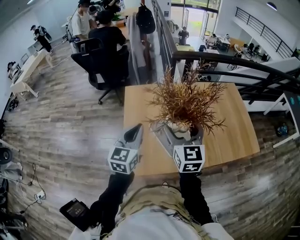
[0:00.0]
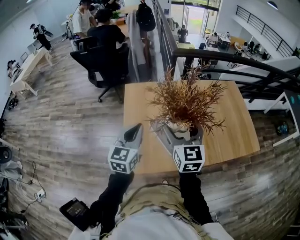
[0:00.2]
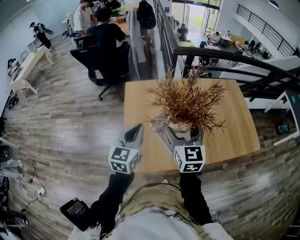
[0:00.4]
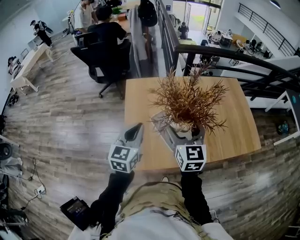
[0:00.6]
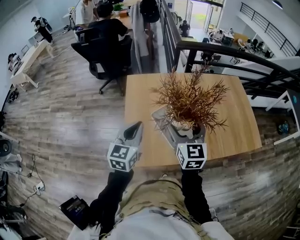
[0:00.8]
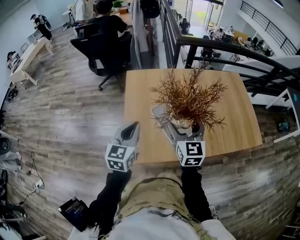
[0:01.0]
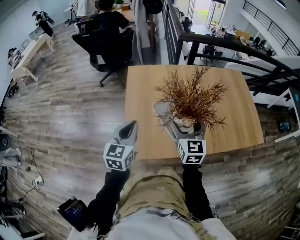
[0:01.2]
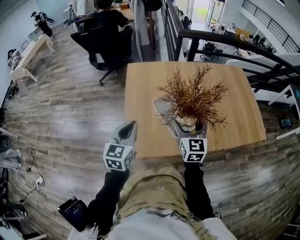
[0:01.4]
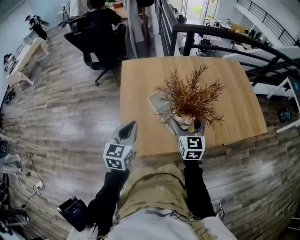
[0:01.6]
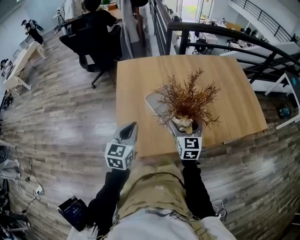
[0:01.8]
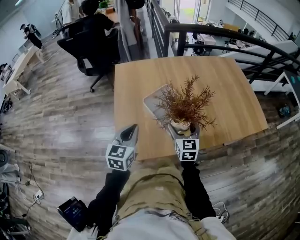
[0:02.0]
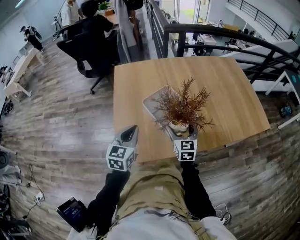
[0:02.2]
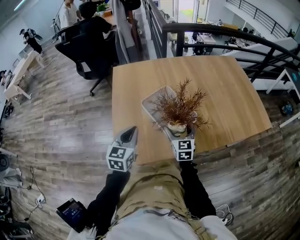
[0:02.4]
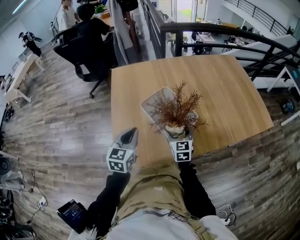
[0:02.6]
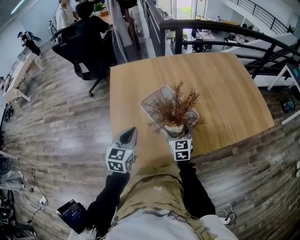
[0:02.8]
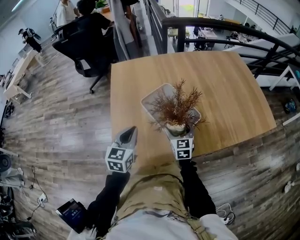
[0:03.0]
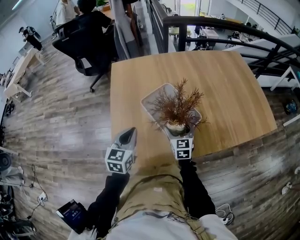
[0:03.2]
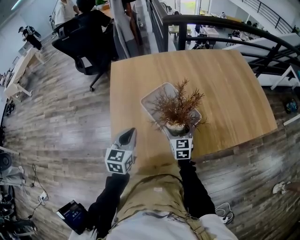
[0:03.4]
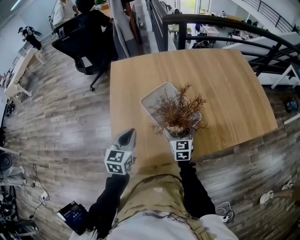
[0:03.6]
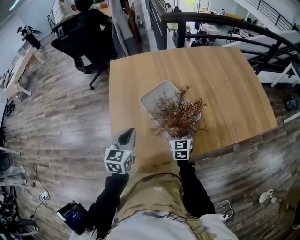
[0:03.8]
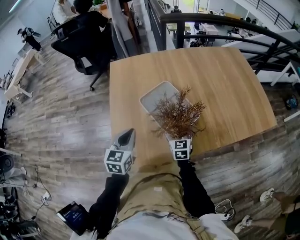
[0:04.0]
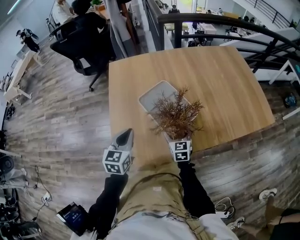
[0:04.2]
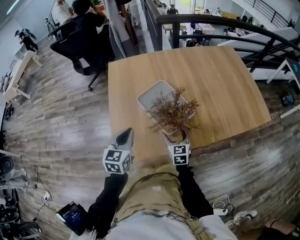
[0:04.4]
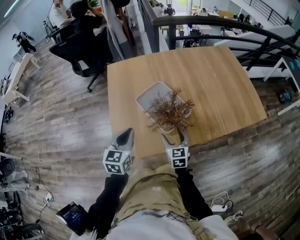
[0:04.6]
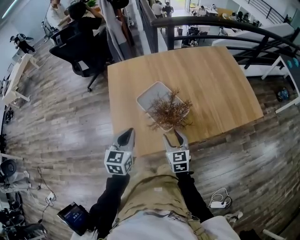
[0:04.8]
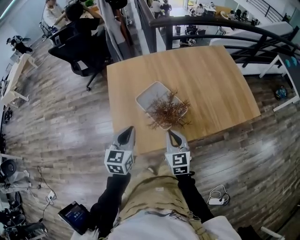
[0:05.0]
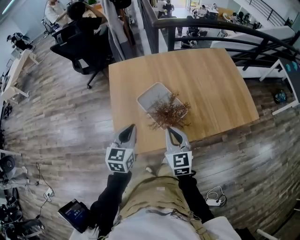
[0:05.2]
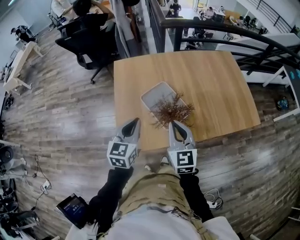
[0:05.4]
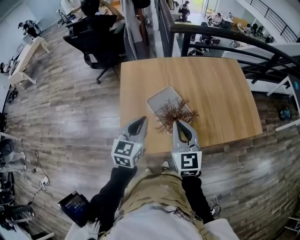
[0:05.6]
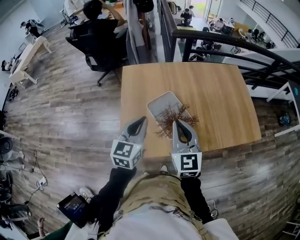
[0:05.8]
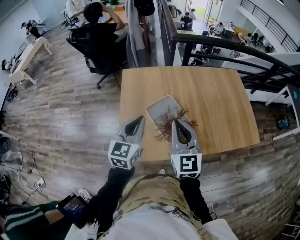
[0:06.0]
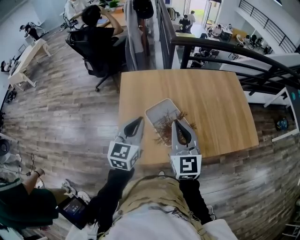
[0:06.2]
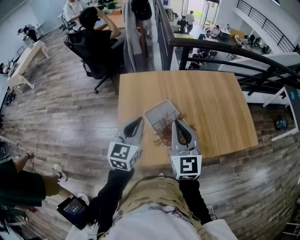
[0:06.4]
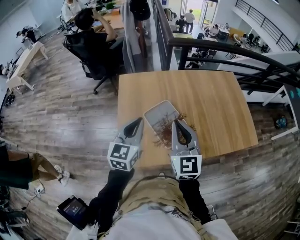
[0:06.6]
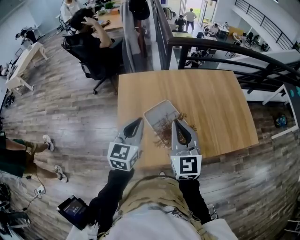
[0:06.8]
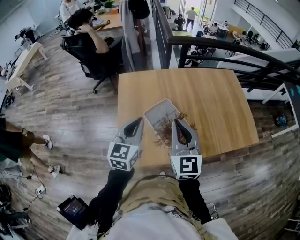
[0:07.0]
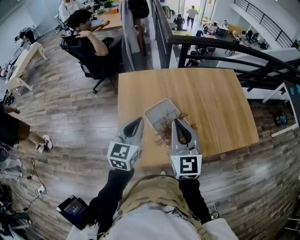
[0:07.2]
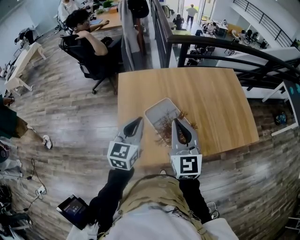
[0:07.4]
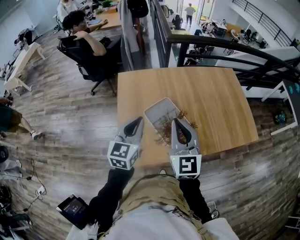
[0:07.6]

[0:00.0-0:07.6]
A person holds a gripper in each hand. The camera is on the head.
0:00.0 to 0:01.6: The two grippers go some 20 cm downward.
0:01.6 to 0:03.0: The right gripper travels downward by roughly 20 cm; the left gripper moves downward and forward, approximately 15 cm.
0:03.0 to 0:04.6: The right gripper shifts roughly 10 cm backward and upward, while the left gripper goes about 5 cm upward.
0:04.6 to 0:06.0: The left gripper moves upward, approximately 20 cm. The right gripper heads upward, covering about 35 cm, swivels roughly 30 degrees, and closes its fingers.
0:06.0 to 0:07.6: The grippers make only small movements.

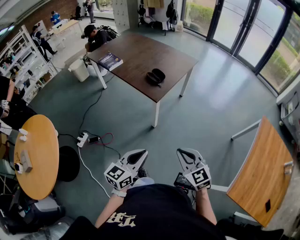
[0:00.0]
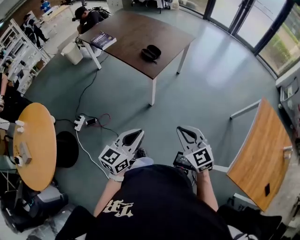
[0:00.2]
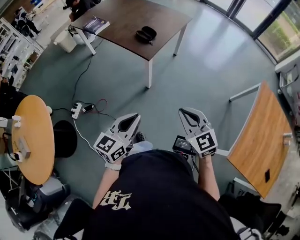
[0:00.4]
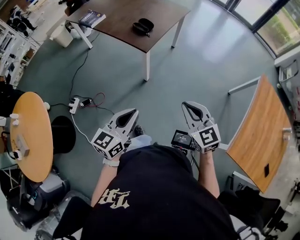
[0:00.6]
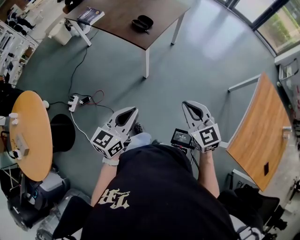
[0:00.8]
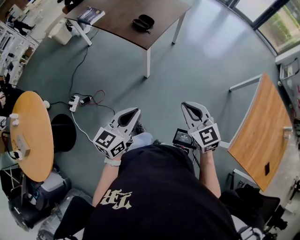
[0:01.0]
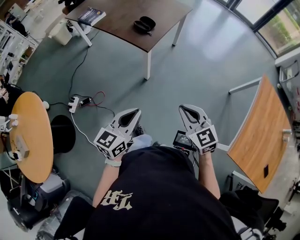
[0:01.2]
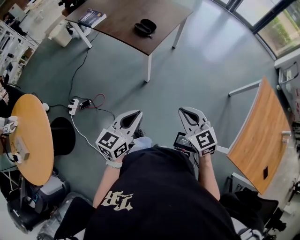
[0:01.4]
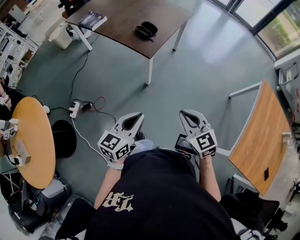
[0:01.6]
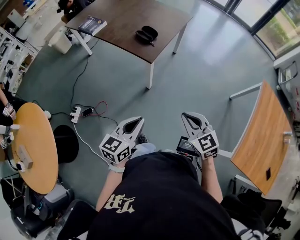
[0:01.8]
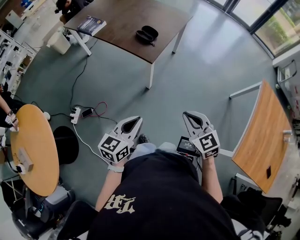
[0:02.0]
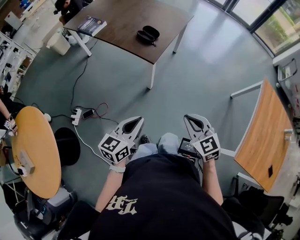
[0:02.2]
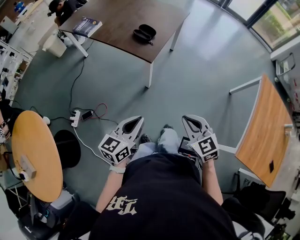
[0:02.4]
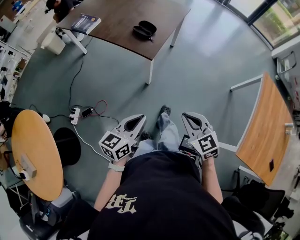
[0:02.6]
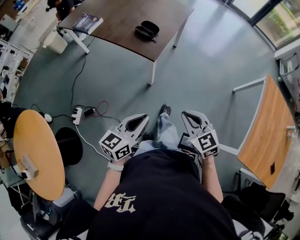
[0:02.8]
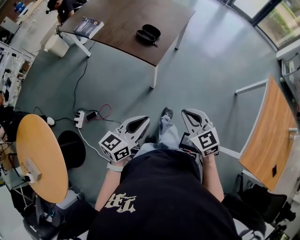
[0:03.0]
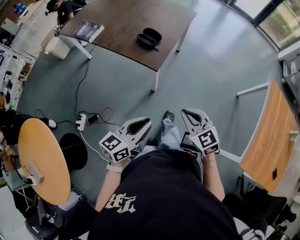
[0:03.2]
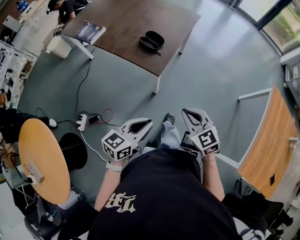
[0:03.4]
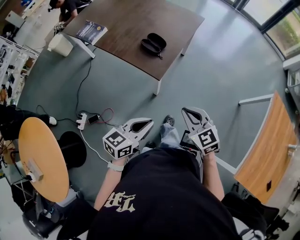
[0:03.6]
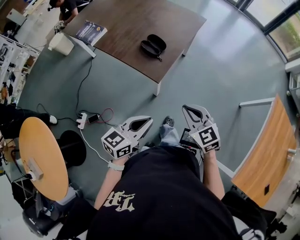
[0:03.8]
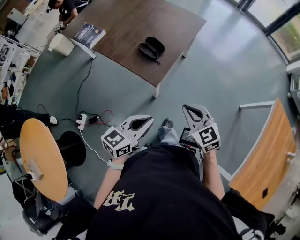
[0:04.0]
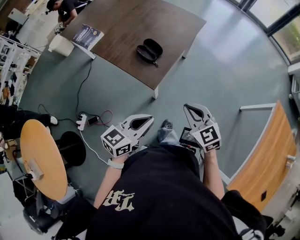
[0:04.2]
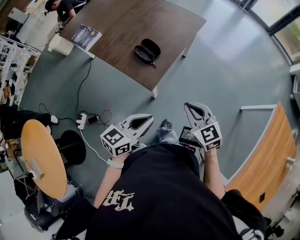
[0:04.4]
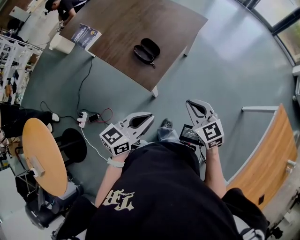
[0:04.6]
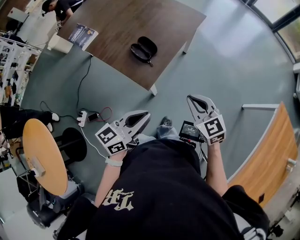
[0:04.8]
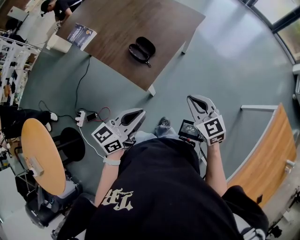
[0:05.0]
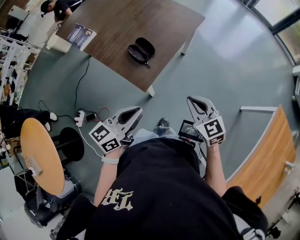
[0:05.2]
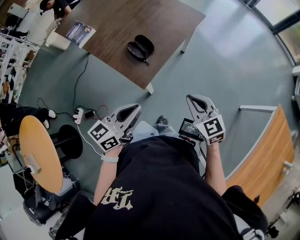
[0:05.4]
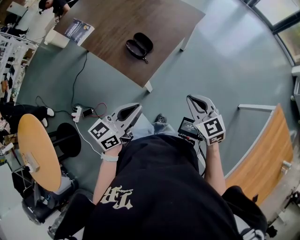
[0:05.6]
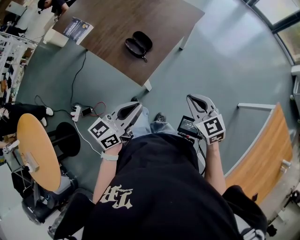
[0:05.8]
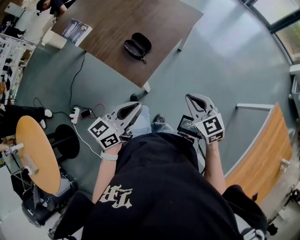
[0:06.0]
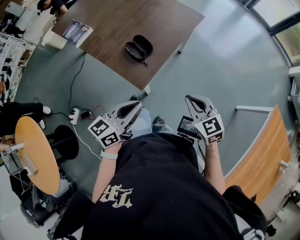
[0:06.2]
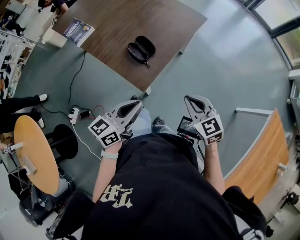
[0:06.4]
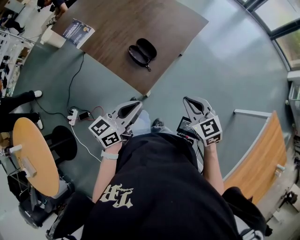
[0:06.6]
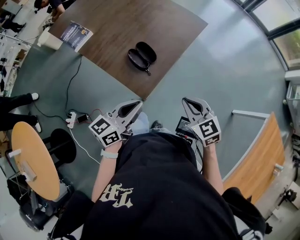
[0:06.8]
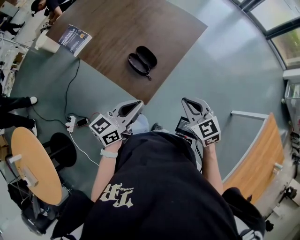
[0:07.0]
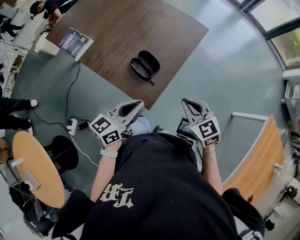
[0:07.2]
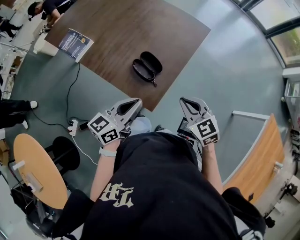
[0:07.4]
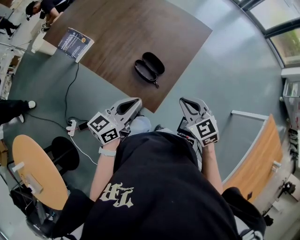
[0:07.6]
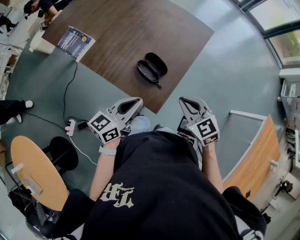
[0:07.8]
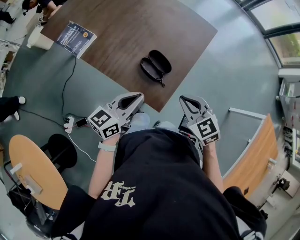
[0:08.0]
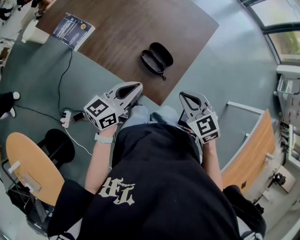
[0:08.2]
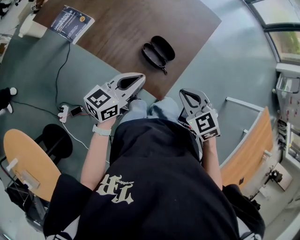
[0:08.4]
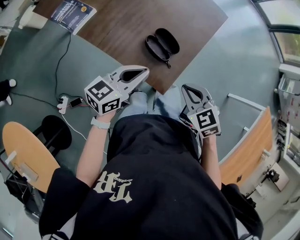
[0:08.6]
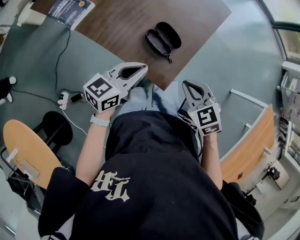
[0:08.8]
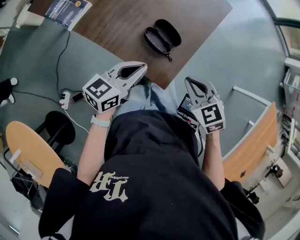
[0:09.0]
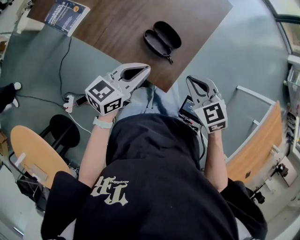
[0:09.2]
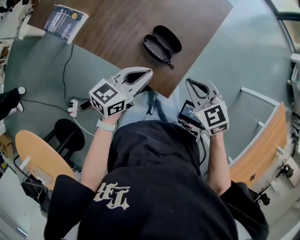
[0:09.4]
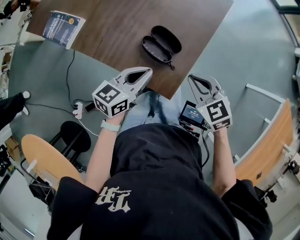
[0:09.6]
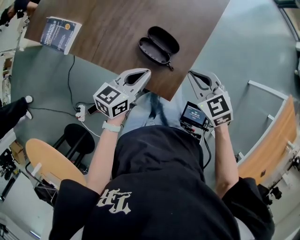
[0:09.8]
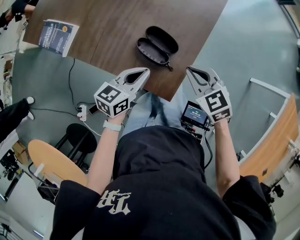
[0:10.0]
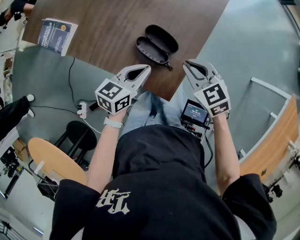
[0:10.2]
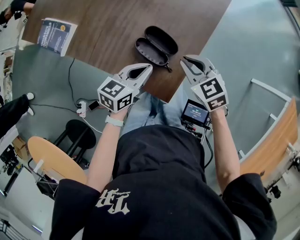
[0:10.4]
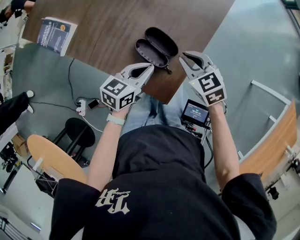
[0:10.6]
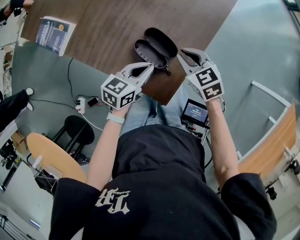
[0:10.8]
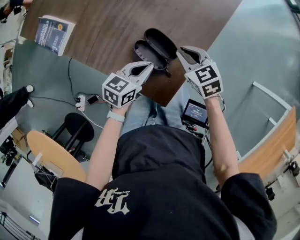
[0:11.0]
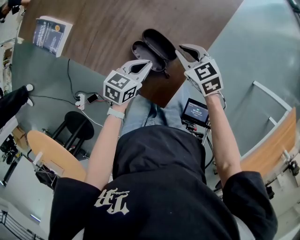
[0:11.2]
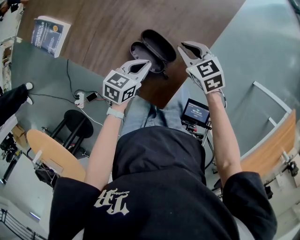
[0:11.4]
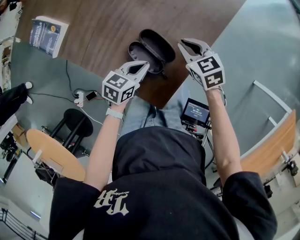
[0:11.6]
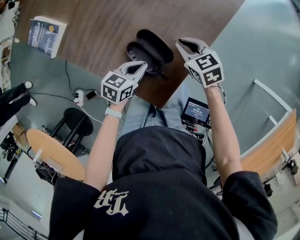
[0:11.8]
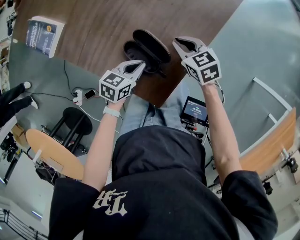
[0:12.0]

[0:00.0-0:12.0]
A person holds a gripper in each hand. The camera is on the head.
0:00.0 to 0:01.6: The two grippers go roughly 10 cm forward.
0:01.6 to 0:03.0: The right gripper travels forward and to the left by roughly 10 cm, while the left gripper is displaced forward by roughly 10 cm.
0:03.0 to 0:04.4: The two grippers go approximately 25 cm forward.
0:04.4 to 0:06.0: The right gripper heads to the right and forward, covering about 5 cm; the left gripper goes about 5 cm forward.
0:06.0 to 0:07.6: The right gripper shifts about 20 cm to the left and forward, while the left gripper moves forward and to the left, roughly 20 cm.
0:07.6 to 0:09.0: The left gripper shifts roughly 10 cm downward and to the left. The right gripper heads to the left and downward, covering approximately 10 cm.
0:09.0 to 0:10.4: The left gripper shifts approximately 15 cm downward, forward and to the right; the right gripper moves forward and downward, some 15 cm.
0:10.4 to 0:12.0: The right gripper moves downward and forward, approximately 15 cm; the left gripper goes about 10 cm downward.

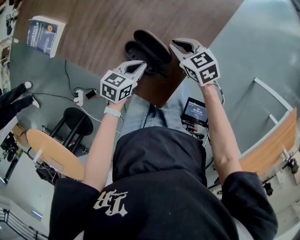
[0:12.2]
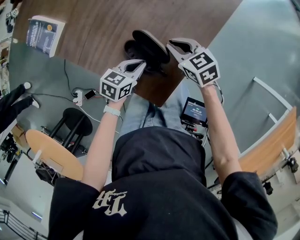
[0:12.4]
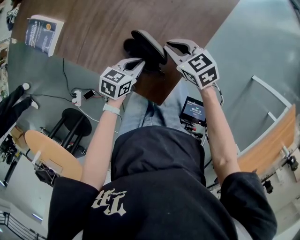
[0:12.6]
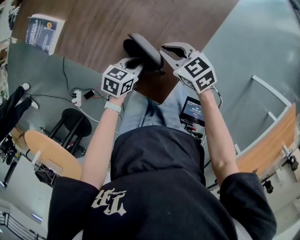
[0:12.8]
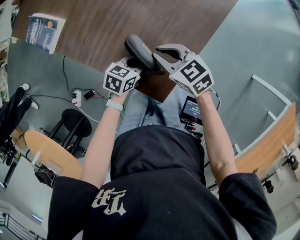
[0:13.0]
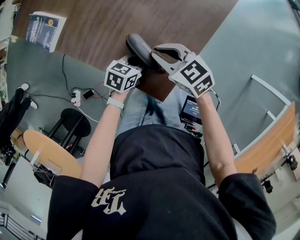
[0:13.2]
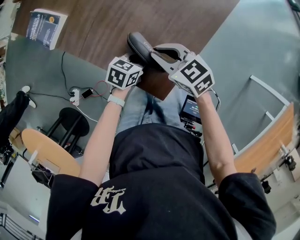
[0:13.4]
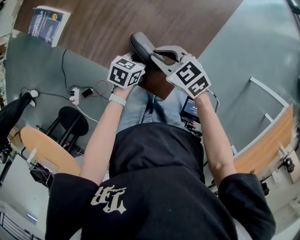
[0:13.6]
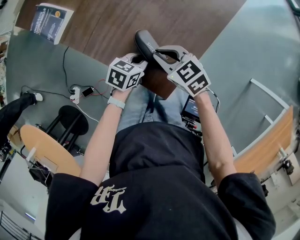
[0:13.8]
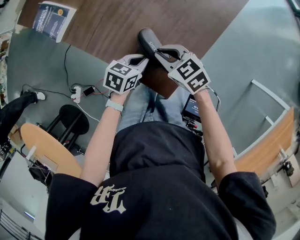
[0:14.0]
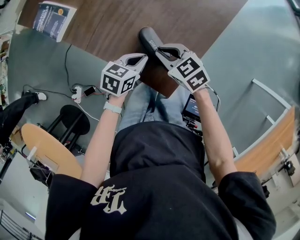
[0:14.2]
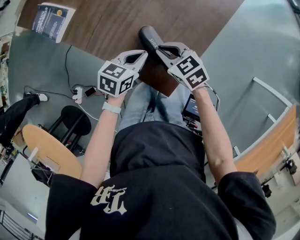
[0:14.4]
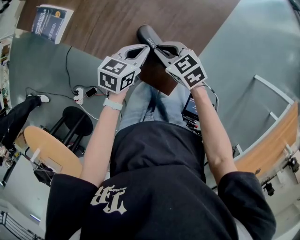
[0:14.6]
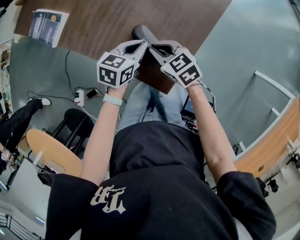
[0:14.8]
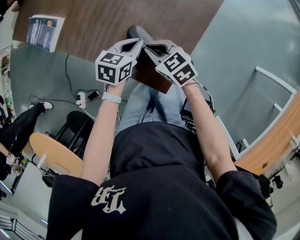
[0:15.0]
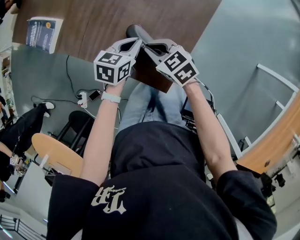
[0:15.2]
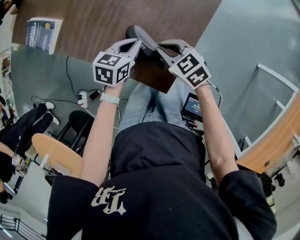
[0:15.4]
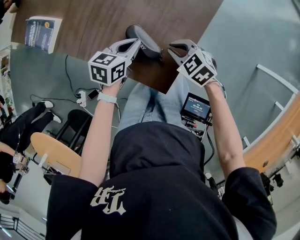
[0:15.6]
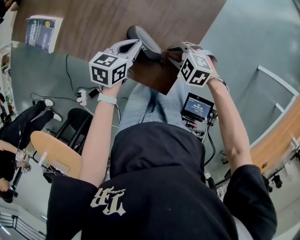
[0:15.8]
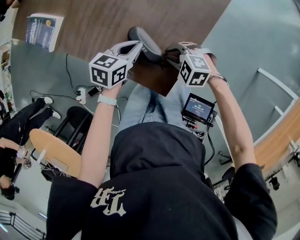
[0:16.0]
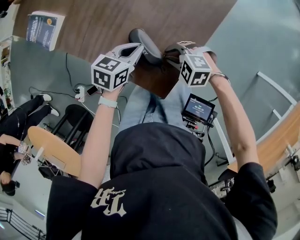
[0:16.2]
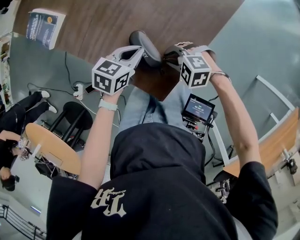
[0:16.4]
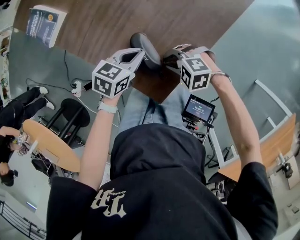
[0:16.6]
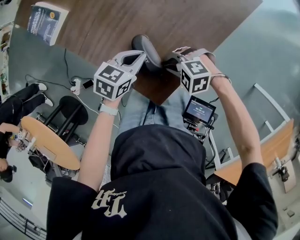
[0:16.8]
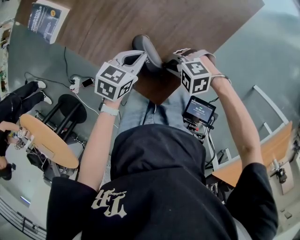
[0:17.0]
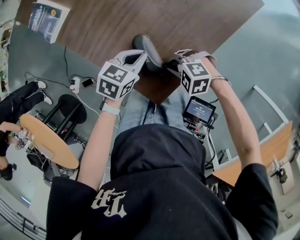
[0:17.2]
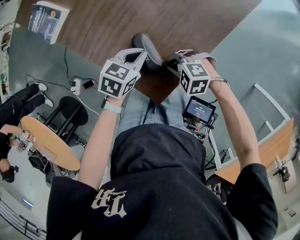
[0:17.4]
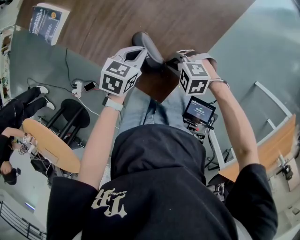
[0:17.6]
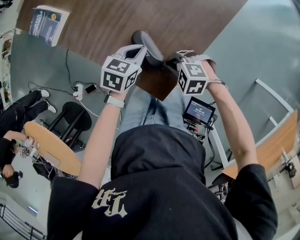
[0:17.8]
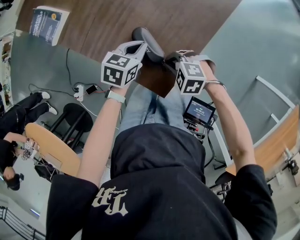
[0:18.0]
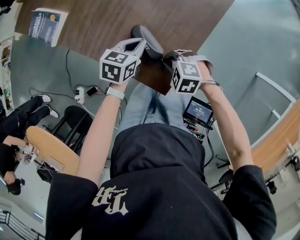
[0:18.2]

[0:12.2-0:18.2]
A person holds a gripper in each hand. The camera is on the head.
0:12.2 to 0:13.8: The right gripper changes place by roughly 15 cm.
0:13.8 to 0:15.2: The left gripper changes place by some 5 cm.
0:15.2 to 0:16.6: The right gripper ends up roughly 10 cm from where it was, and twists roughly 50 degrees counterclockwise, seen from behind.
0:16.6 to 0:18.2: The right gripper swivels approximately 20 degrees.
